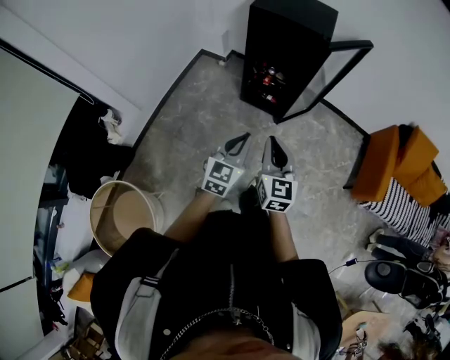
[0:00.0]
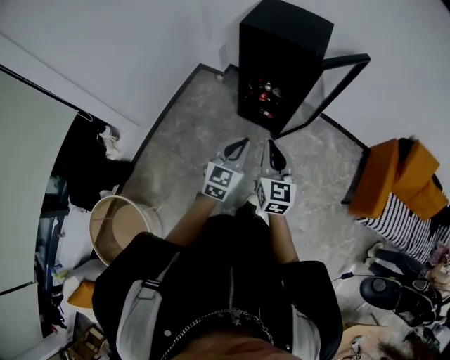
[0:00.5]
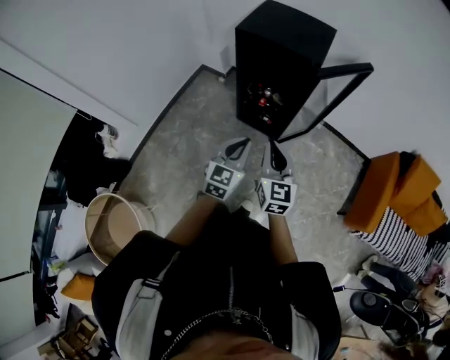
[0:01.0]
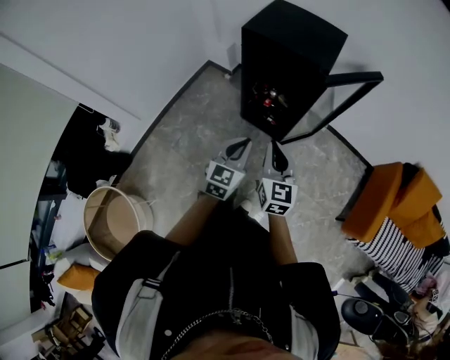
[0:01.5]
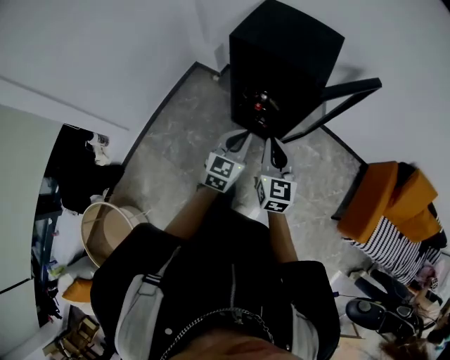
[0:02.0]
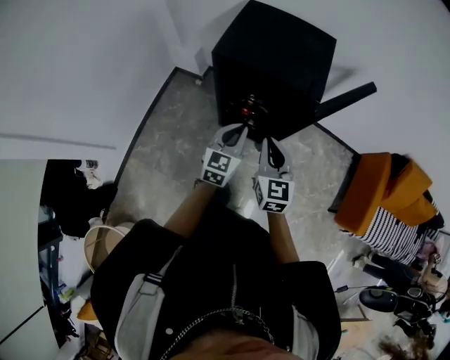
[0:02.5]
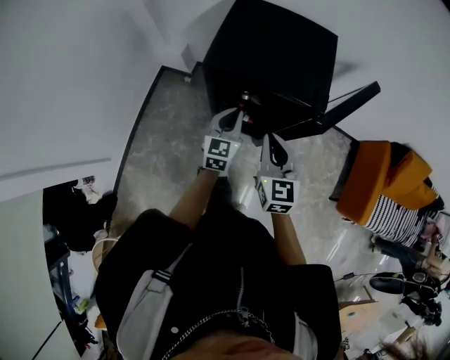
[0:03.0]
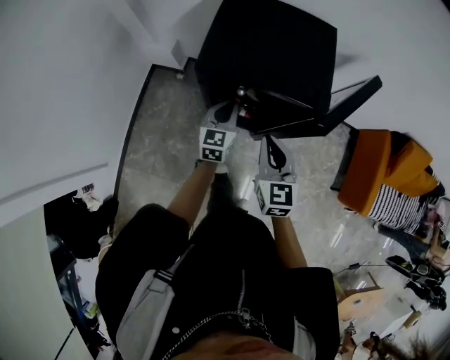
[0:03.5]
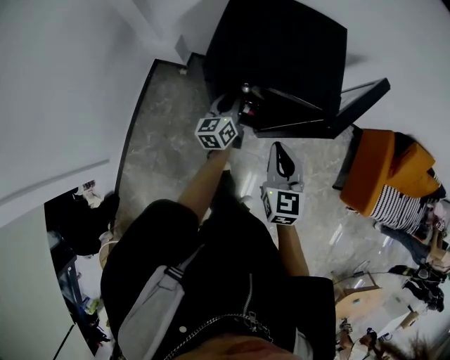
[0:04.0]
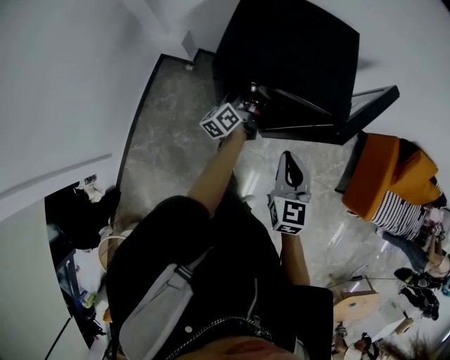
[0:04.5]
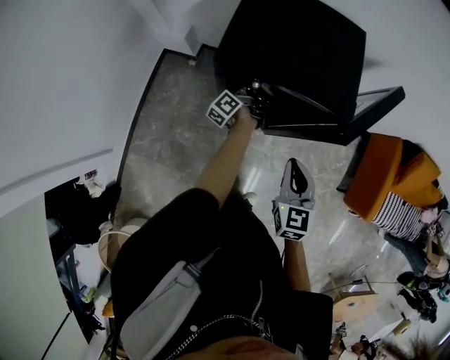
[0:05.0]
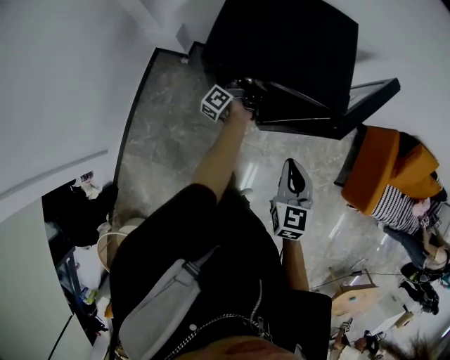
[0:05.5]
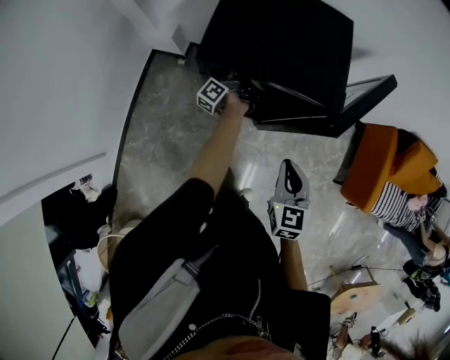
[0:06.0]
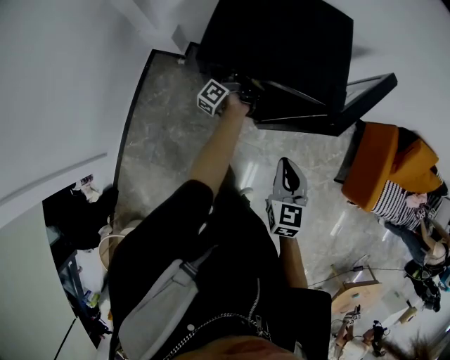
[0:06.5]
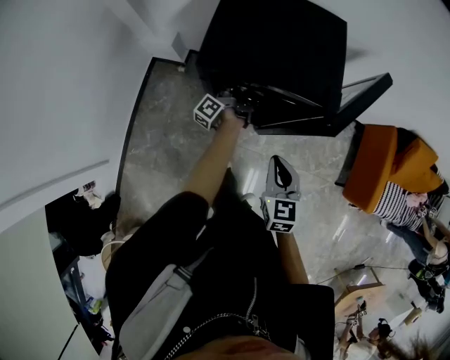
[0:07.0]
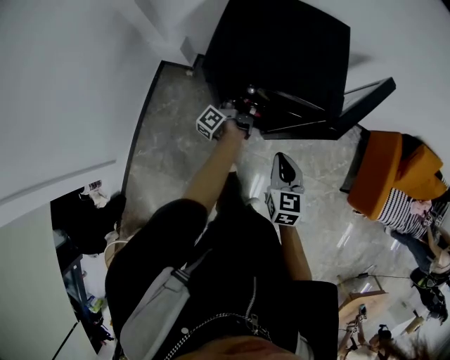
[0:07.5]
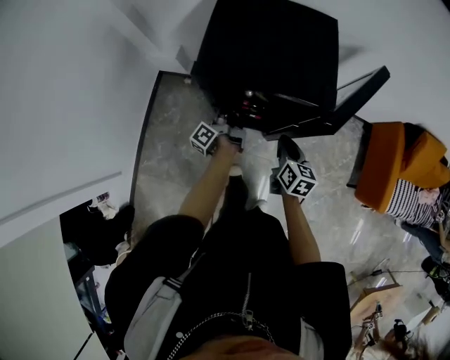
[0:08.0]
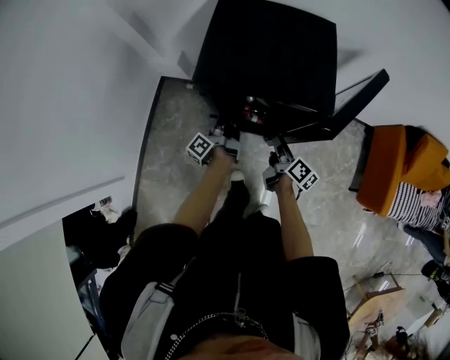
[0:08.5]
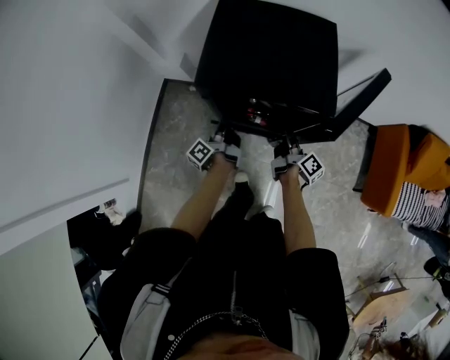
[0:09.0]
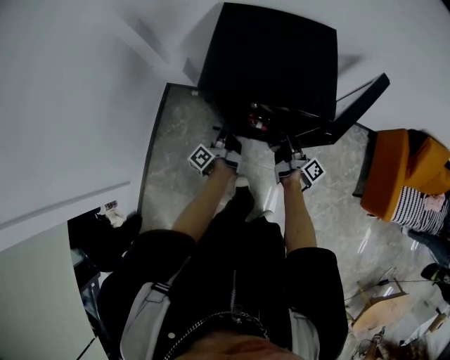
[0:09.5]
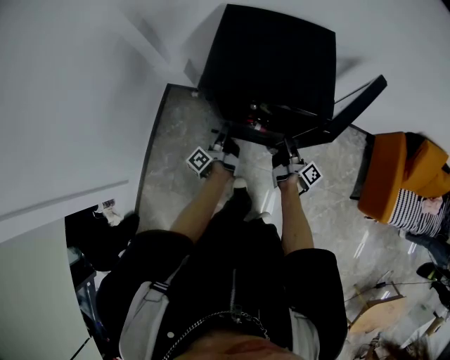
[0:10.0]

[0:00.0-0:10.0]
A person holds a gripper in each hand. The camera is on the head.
0:00.0 to 0:02.0: Both grippers travel together forward, about 25 cm.
0:02.0 to 0:04.0: The right gripper travels forward by some 15 cm, while the left gripper goes about 30 cm forward, and turns by about 40 degrees.
0:04.0 to 0:06.0: The left gripper goes some 10 cm forward and downward, and rotates around the line of its fingers by some 50 degrees, counterclockwise from behind. Meanwhile the right gripper moves about 10 cm.
0:06.0 to 0:08.0: The right gripper goes some 10 cm downward and forward, and turns by roughly 30 degrees. Meanwhile the left gripper travels backward by some 10 cm.
0:08.0 to 0:10.0: The left gripper goes roughly 5 cm backward. The right gripper ends up roughly 5 cm from where it was, twists some 60 degrees clockwise, seen from behind, and opens and closes again.

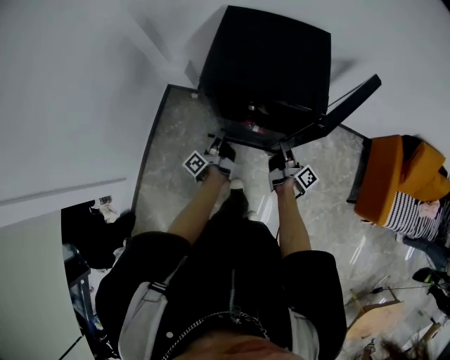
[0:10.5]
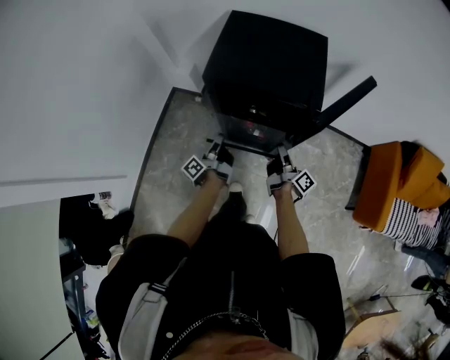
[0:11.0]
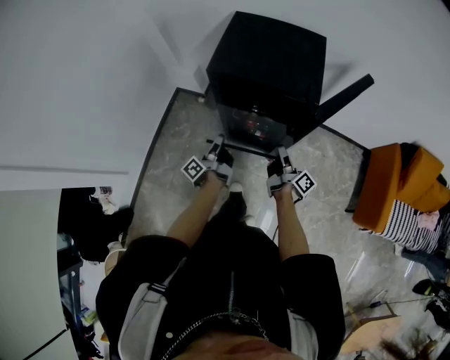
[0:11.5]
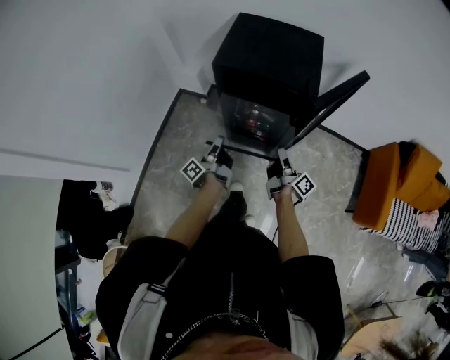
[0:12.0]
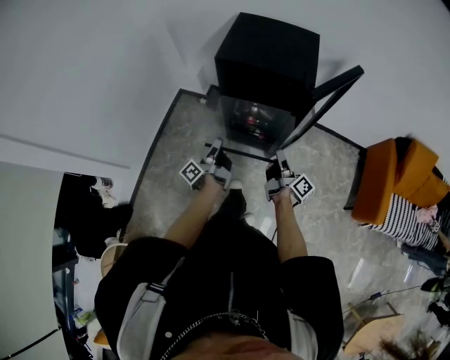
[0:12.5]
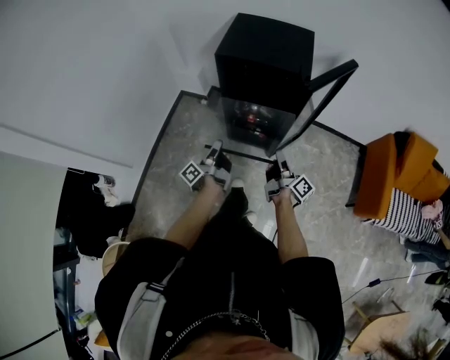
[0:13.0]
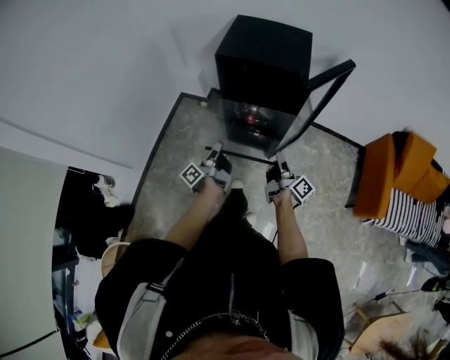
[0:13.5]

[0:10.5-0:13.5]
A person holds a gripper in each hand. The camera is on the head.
0:10.5 to 0:12.0: The right gripper shifts approximately 10 cm backward. The left gripper moves backward and upward, approximately 15 cm.
0:12.0 to 0:13.5: Both grippers move backward, approximately 10 cm.

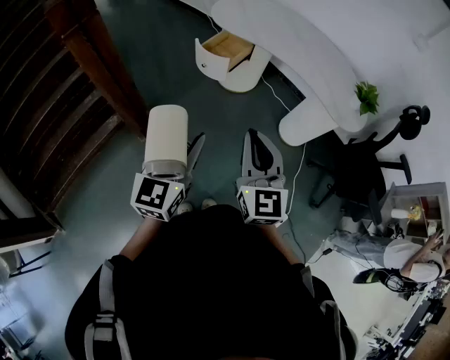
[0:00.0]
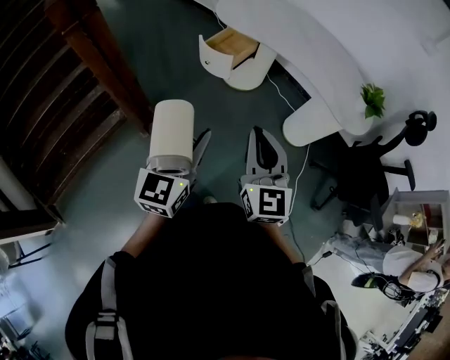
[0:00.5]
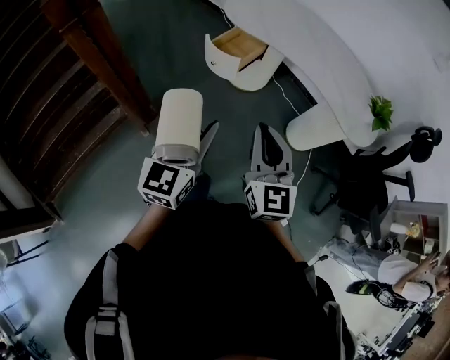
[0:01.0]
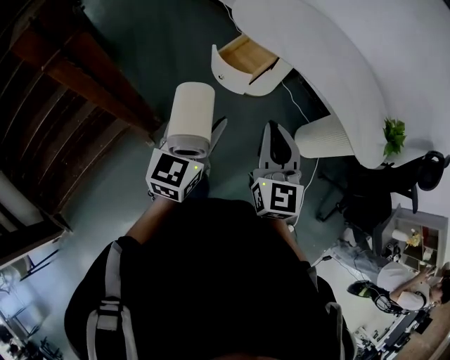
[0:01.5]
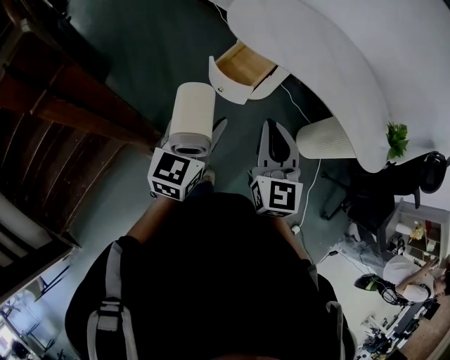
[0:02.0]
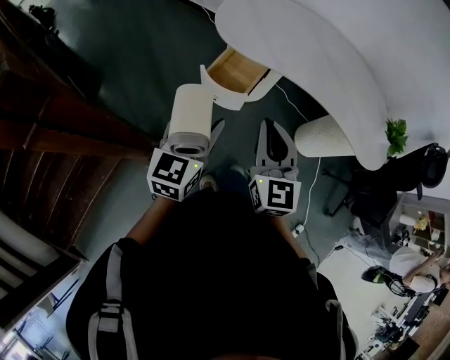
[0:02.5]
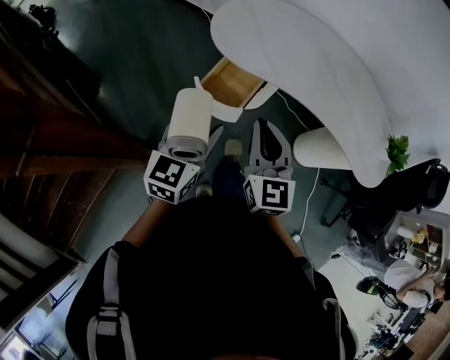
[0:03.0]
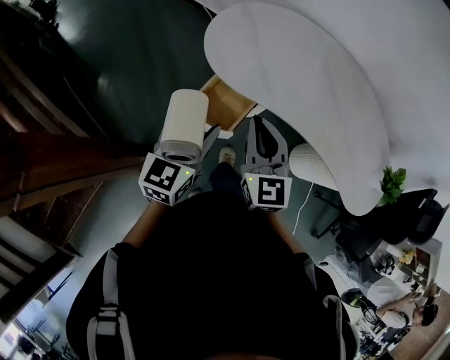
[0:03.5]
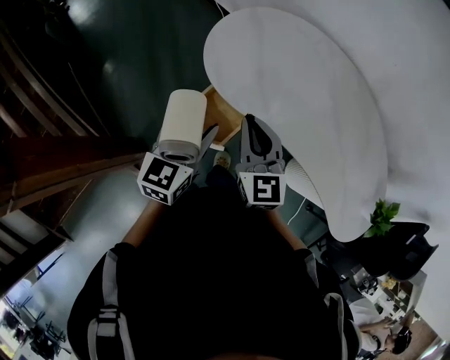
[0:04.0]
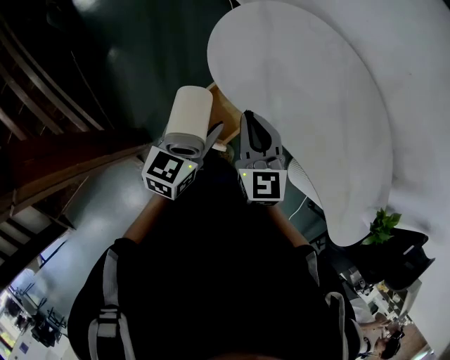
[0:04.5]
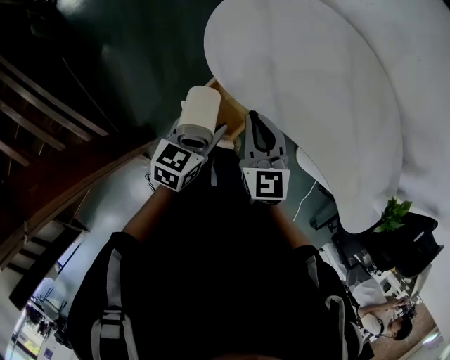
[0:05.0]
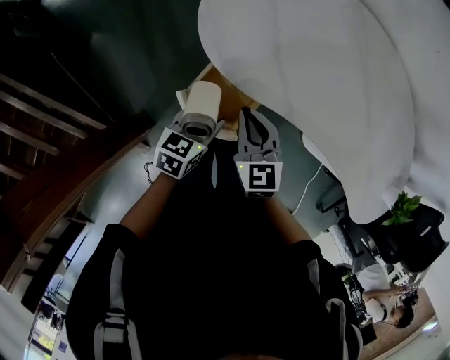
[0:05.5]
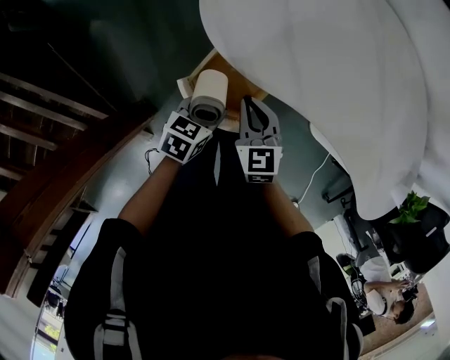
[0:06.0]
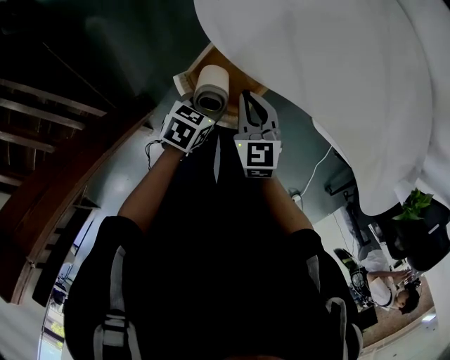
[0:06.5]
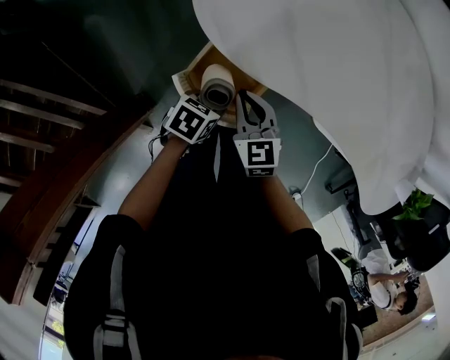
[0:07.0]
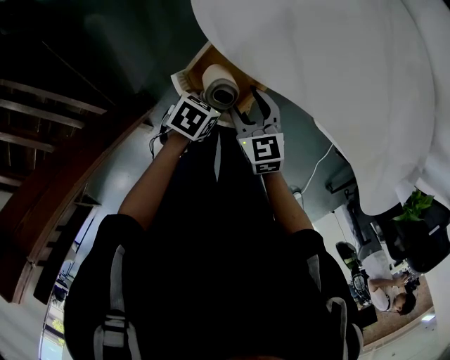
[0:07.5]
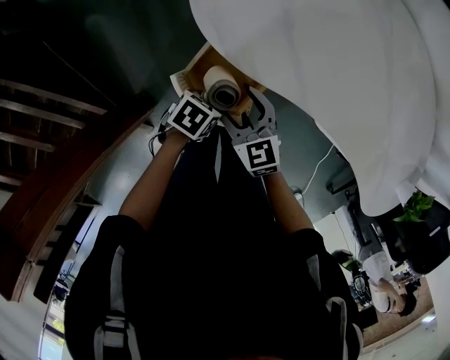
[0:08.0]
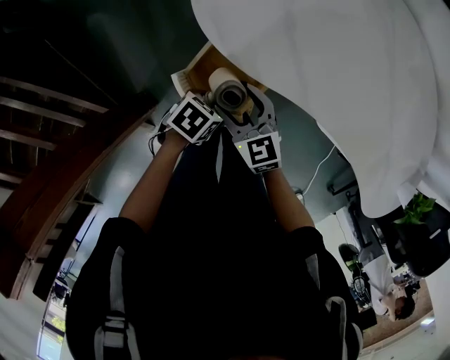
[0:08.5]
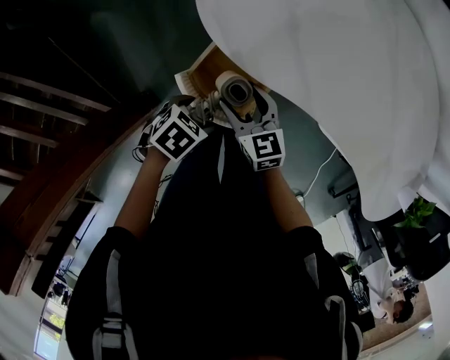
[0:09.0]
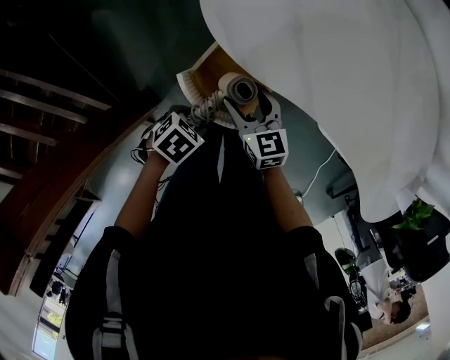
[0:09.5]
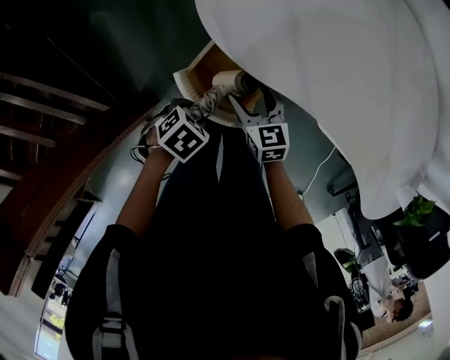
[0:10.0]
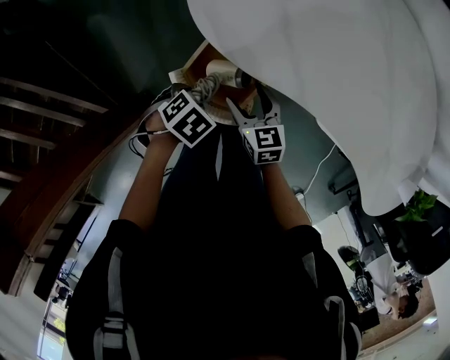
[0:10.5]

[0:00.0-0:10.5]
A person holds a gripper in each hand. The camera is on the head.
0:00.0 to 0:02.0: Both grippers move forward, approximately 30 cm.
0:02.0 to 0:04.0: Both grippers move forward, roughly 30 cm.
0:04.0 to 0:06.5: The two grippers go about 25 cm downward. The left gripper points its fingers some 40 degrees further downward. Meanwhile the right gripper changes its angle by some 20 degrees.
0:06.5 to 0:08.5: The left gripper opens up. Meanwhile the right gripper opens.
0:08.5 to 0:10.5: The left gripper shifts by some 5 cm, turns by some 30 degrees, and closes. Meanwhile the right gripper heads downward, covering about 5 cm.

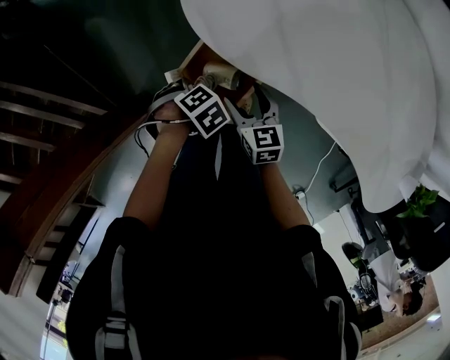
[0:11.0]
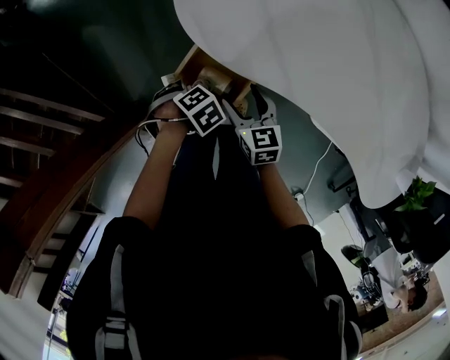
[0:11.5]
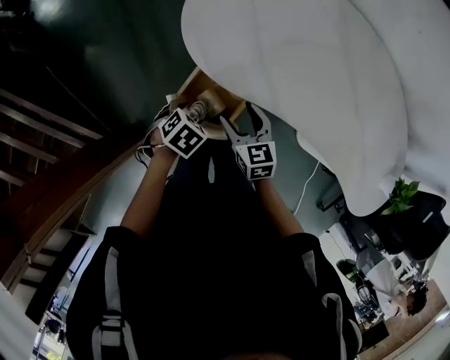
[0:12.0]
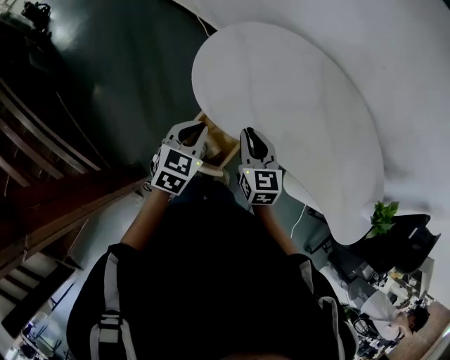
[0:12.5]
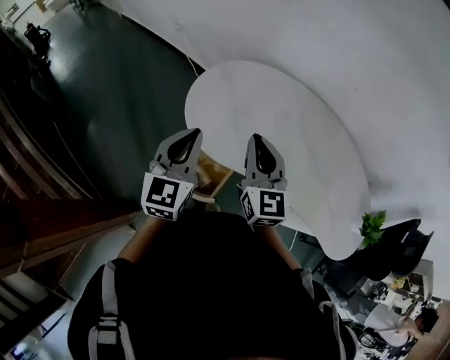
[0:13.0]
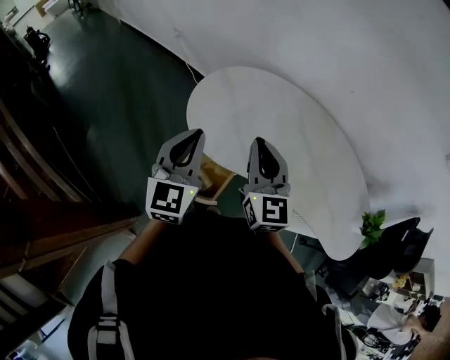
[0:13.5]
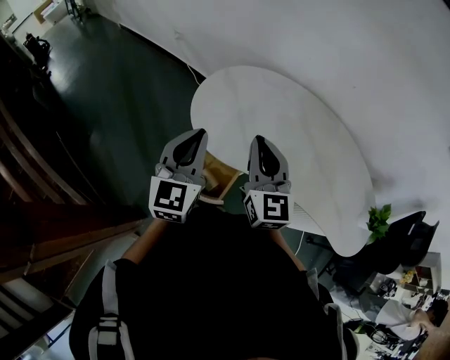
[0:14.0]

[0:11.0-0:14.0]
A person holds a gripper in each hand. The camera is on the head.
0:11.0 to 0:12.5: Both grippers travel together upward, roughly 25 cm. The left gripper tips its fingers upward by some 50 degrees, and closes up; the right gripper rotates some 20 degrees, and closes up.
0:12.5 to 0:14.0: Both grippers travel together upward, roughly 20 cm. The left gripper angles its fingers upward, by some 30 degrees; the right gripper rotates approximately 20 degrees.
